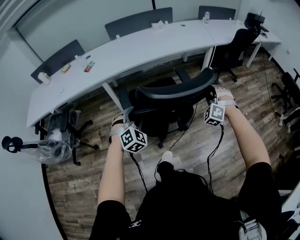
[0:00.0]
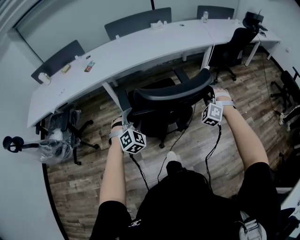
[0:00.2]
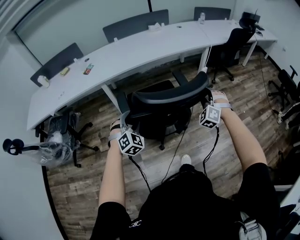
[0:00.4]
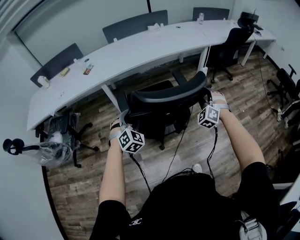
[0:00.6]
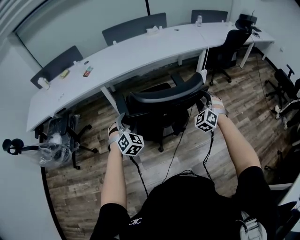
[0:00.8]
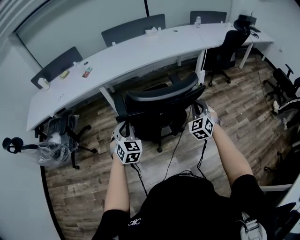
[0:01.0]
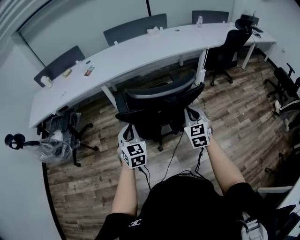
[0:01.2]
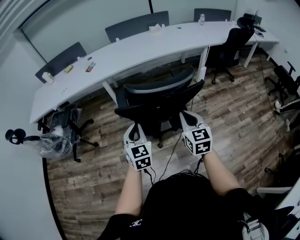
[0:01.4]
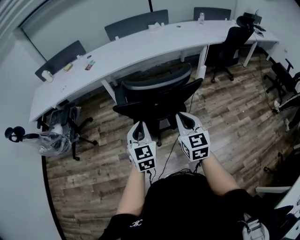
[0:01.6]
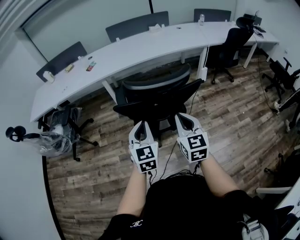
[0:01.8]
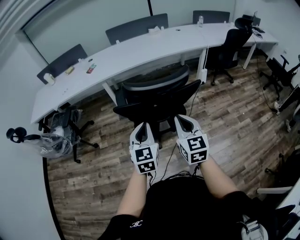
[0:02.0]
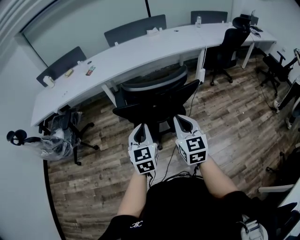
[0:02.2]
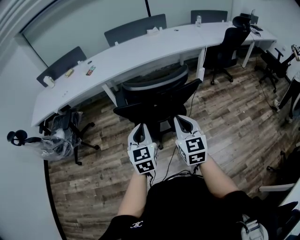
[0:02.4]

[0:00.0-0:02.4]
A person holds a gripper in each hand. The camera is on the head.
0:00.0 to 0:01.2: The left gripper moves backward, about 10 cm, rotates around the line of its fingers by roughly 40 degrees, counterclockwise from behind, and closes up. Meanwhile the right gripper is displaced backward and to the left by about 15 cm, twists roughly 60 degrees clockwise, seen from behind, and closes.
0:01.2 to 0:02.4: The right gripper is displaced backward and to the left by about 10 cm; the left gripper goes some 10 cm backward and to the right.

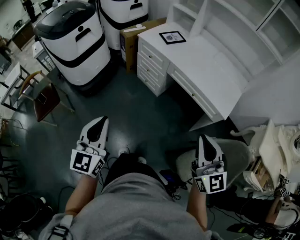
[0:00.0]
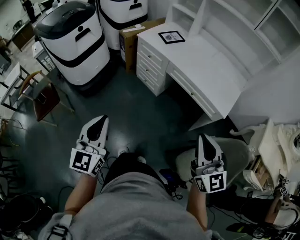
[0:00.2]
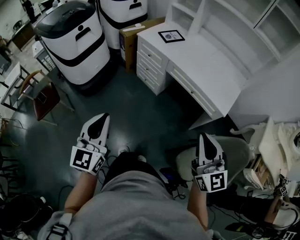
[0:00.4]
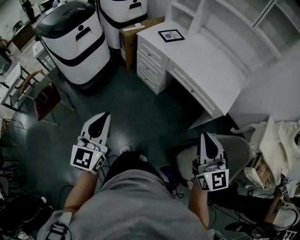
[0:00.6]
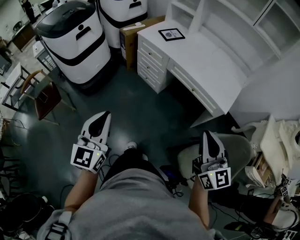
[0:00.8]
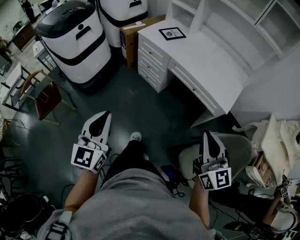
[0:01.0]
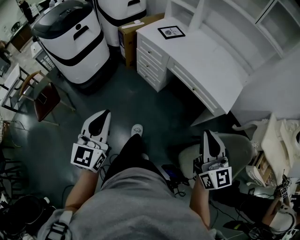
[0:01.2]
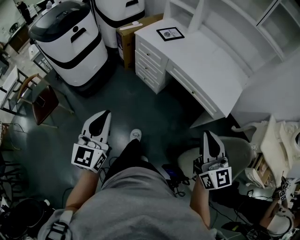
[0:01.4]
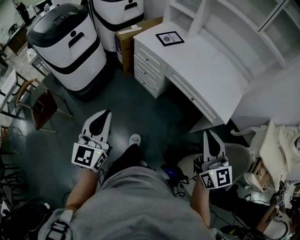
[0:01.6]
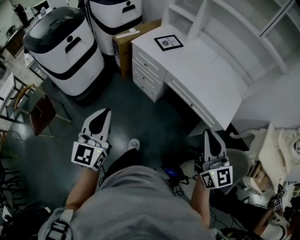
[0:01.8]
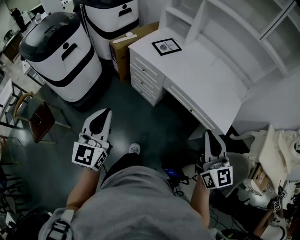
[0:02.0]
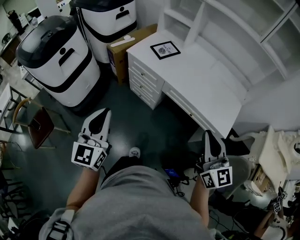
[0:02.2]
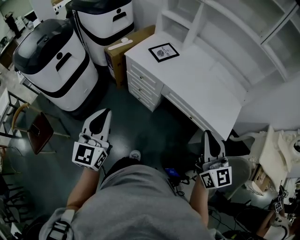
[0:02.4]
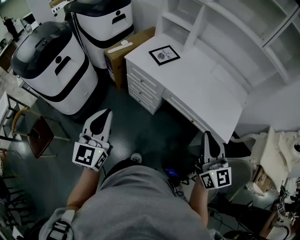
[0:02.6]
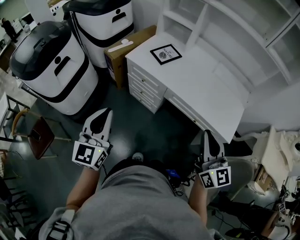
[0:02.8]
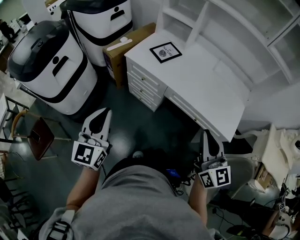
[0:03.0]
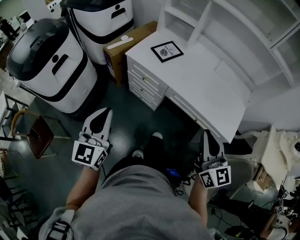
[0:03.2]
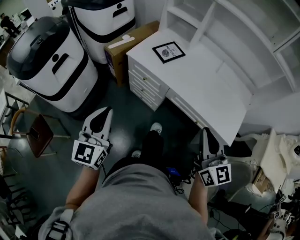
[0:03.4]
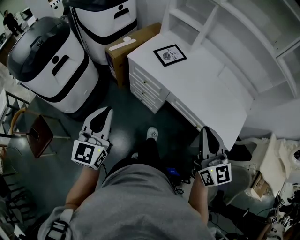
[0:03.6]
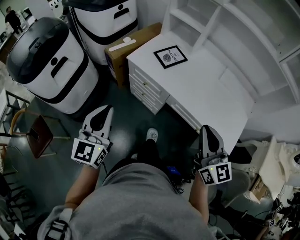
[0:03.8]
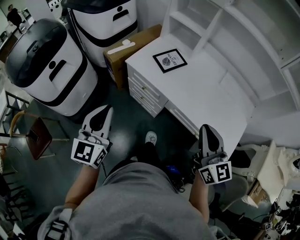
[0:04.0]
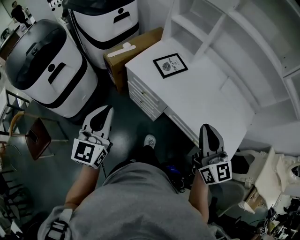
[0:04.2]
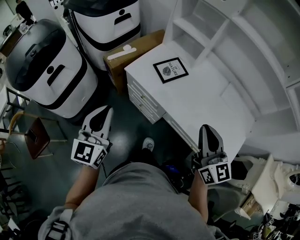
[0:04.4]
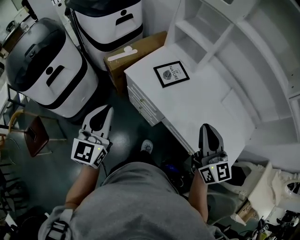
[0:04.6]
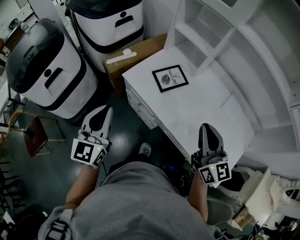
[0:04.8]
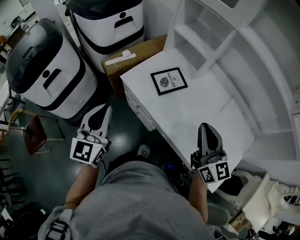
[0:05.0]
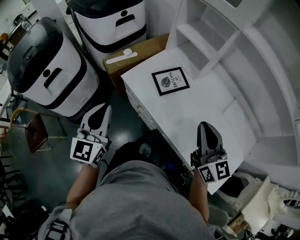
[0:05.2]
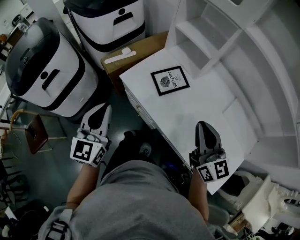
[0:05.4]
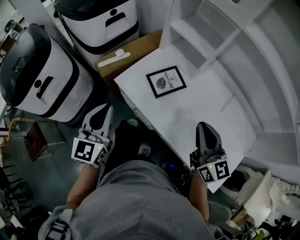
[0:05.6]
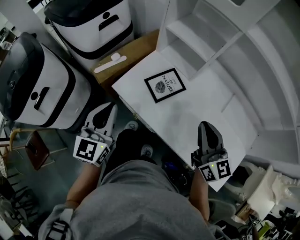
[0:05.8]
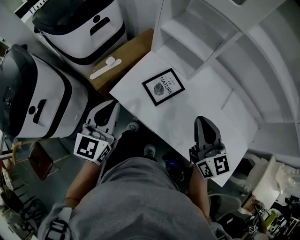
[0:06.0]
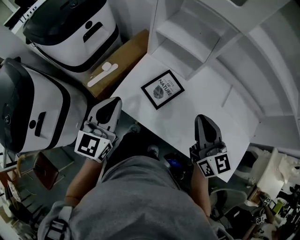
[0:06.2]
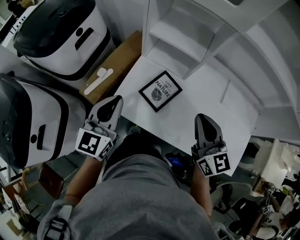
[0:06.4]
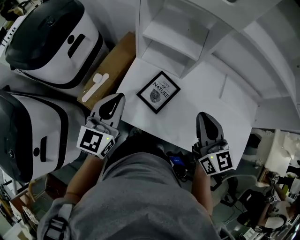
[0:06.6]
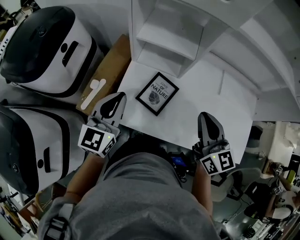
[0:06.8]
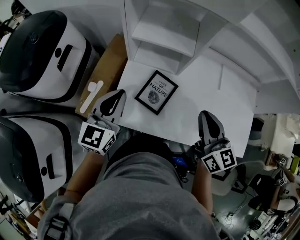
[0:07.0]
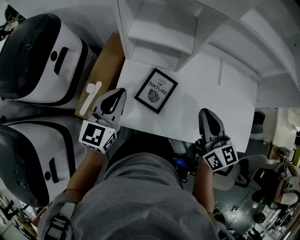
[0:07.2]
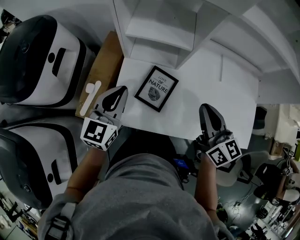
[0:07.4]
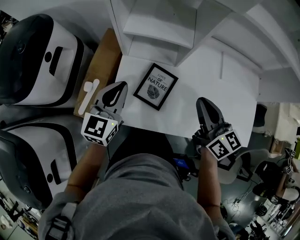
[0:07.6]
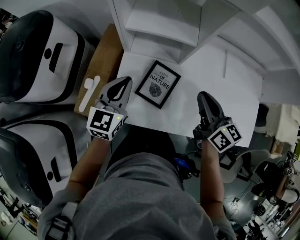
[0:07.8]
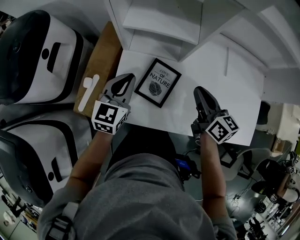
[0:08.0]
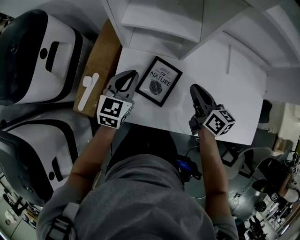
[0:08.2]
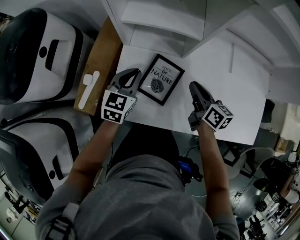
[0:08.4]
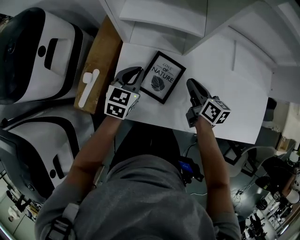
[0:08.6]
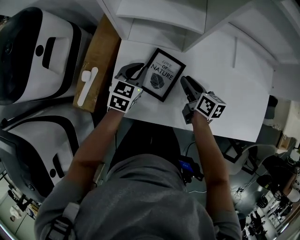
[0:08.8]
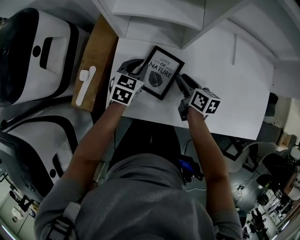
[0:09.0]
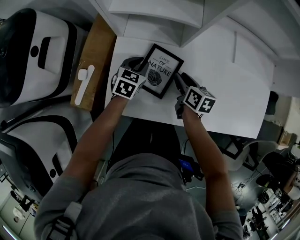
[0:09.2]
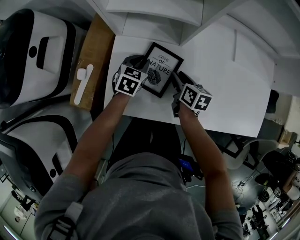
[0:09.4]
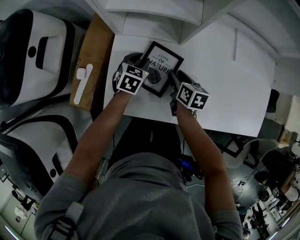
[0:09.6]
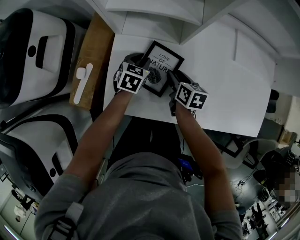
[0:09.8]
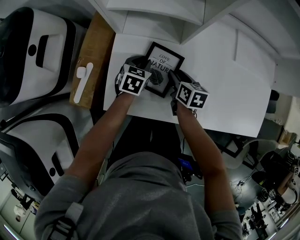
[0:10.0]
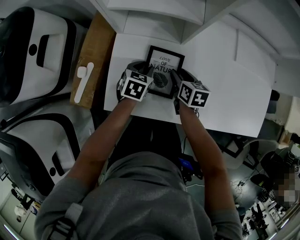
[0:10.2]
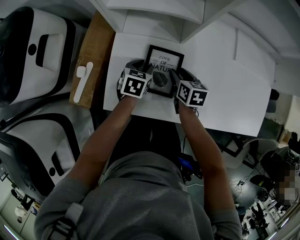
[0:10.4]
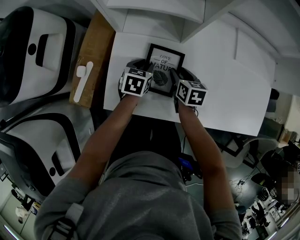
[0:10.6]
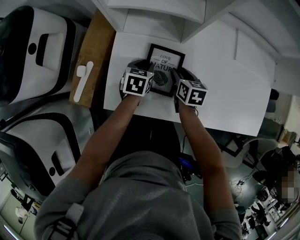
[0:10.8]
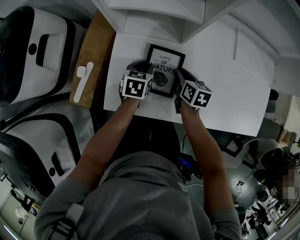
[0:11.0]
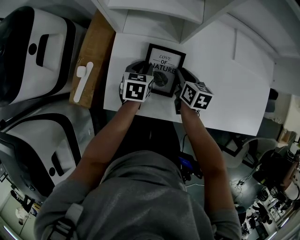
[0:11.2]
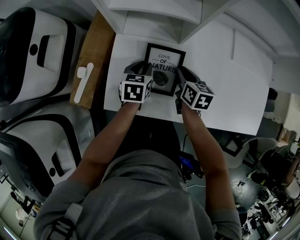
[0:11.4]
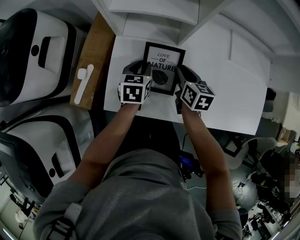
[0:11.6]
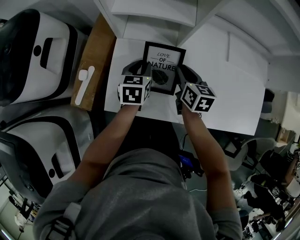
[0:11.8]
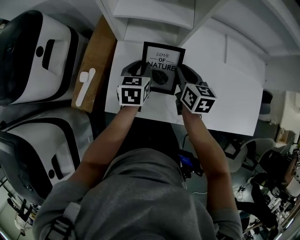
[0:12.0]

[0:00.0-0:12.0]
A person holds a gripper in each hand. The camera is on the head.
0:00.0 to 0:01.6: The two grippers go roughly 5 cm forward.
0:01.6 to 0:03.0: Both grippers travel together forward, approximately 20 cm.
0:03.0 to 0:04.4: Both grippers move forward, about 15 cm.
0:04.4 to 0:06.0: The two grippers go approximately 20 cm forward.
0:06.0 to 0:07.6: The right gripper shifts by some 5 cm, and rotates some 30 degrees. Meanwhile the left gripper changes place by approximately 20 cm, and rotates roughly 30 degrees.
0:07.6 to 0:09.0: Both grippers move downward, approximately 20 cm. The left gripper changes its angle by about 20 degrees, while the right gripper turns by approximately 30 degrees, and opens its fingers.
0:09.0 to 0:10.4: The left gripper heads downward, covering approximately 5 cm, and opens its fingers.
0:10.4 to 0:12.0: The grippers both shift upward by about 10 cm.

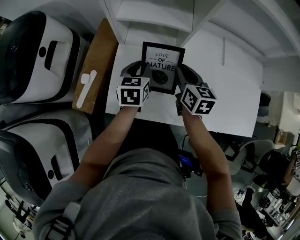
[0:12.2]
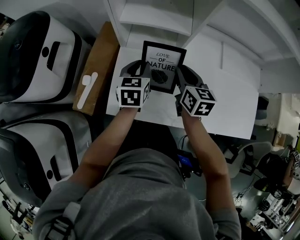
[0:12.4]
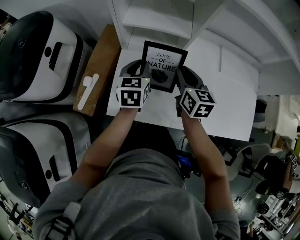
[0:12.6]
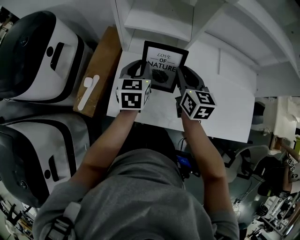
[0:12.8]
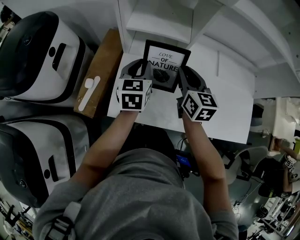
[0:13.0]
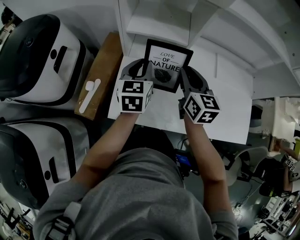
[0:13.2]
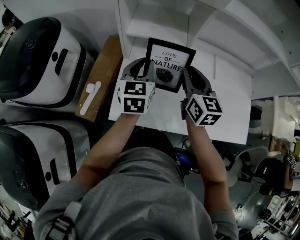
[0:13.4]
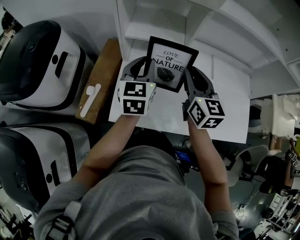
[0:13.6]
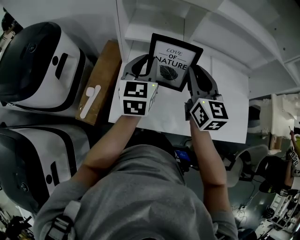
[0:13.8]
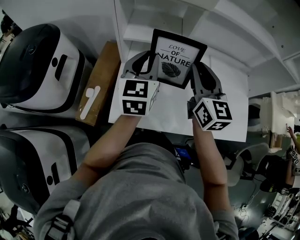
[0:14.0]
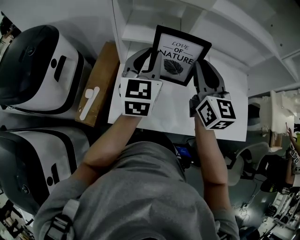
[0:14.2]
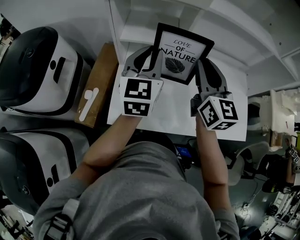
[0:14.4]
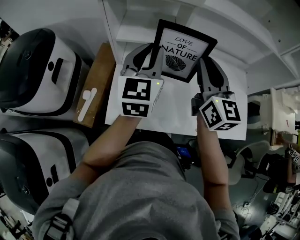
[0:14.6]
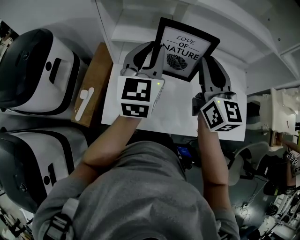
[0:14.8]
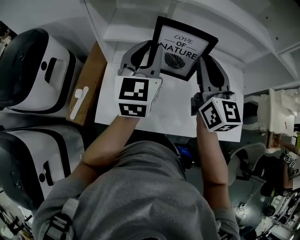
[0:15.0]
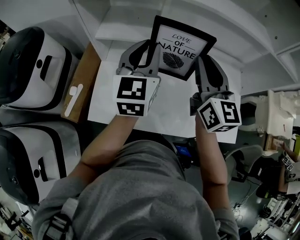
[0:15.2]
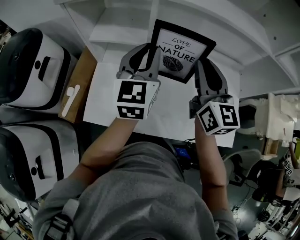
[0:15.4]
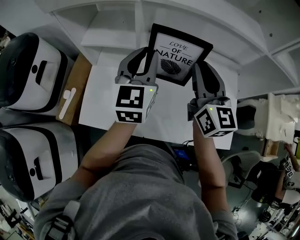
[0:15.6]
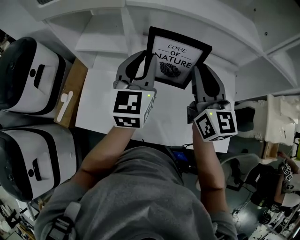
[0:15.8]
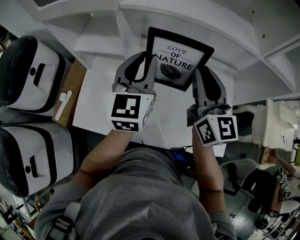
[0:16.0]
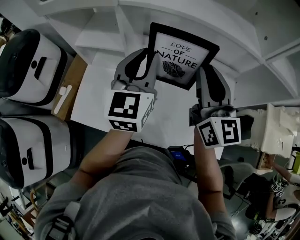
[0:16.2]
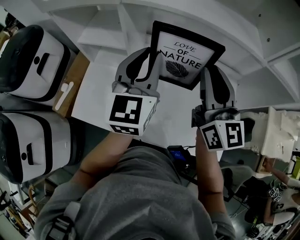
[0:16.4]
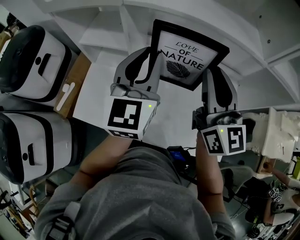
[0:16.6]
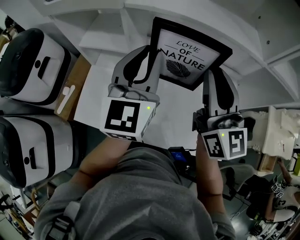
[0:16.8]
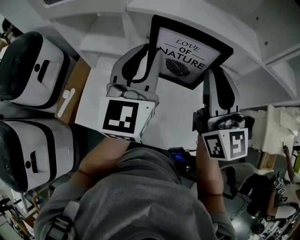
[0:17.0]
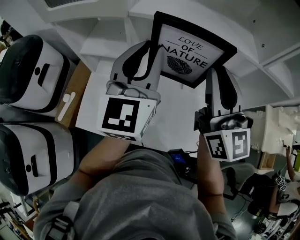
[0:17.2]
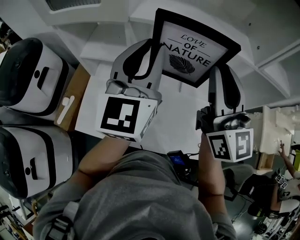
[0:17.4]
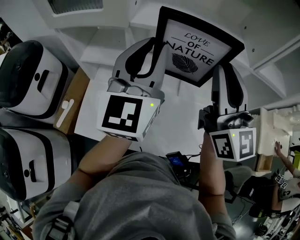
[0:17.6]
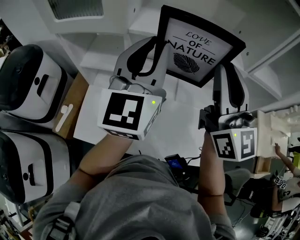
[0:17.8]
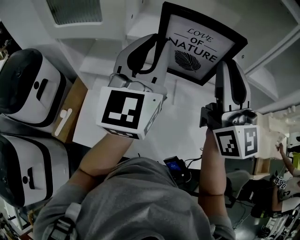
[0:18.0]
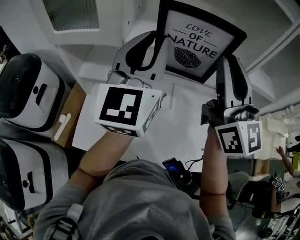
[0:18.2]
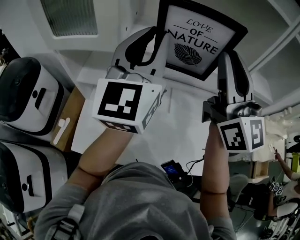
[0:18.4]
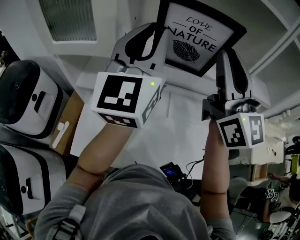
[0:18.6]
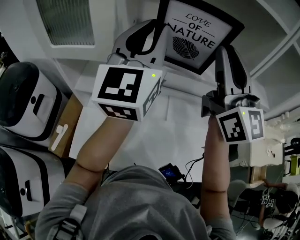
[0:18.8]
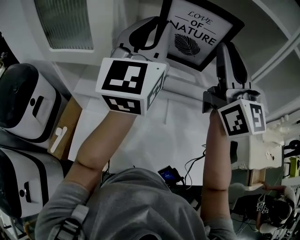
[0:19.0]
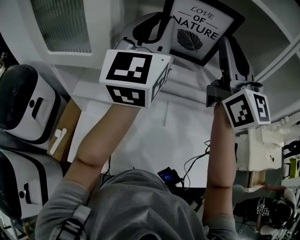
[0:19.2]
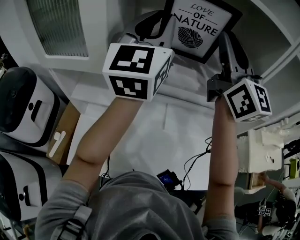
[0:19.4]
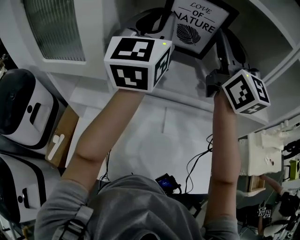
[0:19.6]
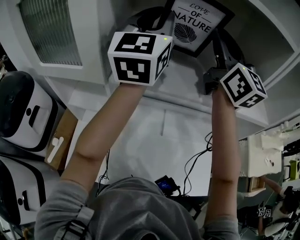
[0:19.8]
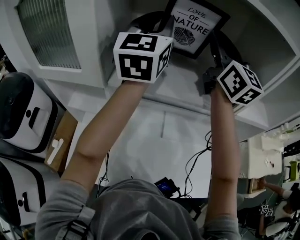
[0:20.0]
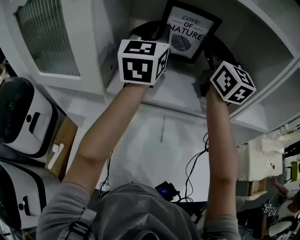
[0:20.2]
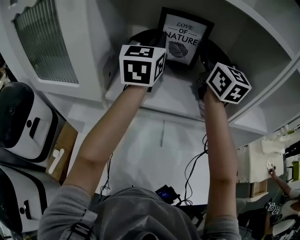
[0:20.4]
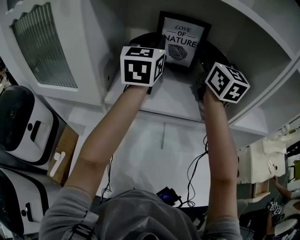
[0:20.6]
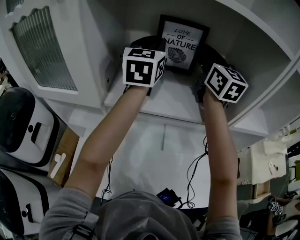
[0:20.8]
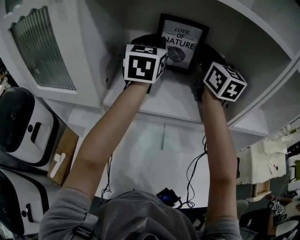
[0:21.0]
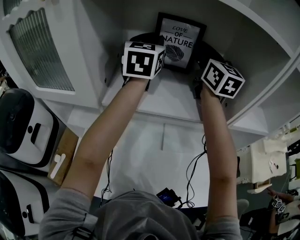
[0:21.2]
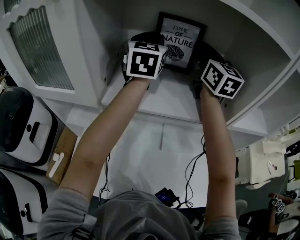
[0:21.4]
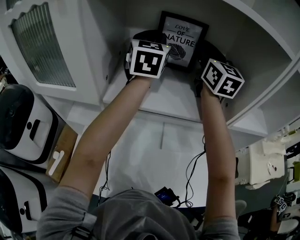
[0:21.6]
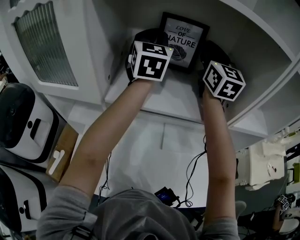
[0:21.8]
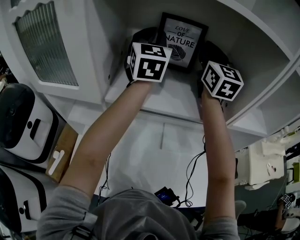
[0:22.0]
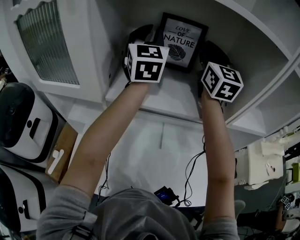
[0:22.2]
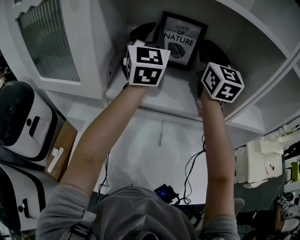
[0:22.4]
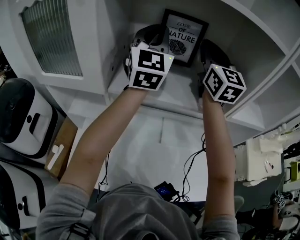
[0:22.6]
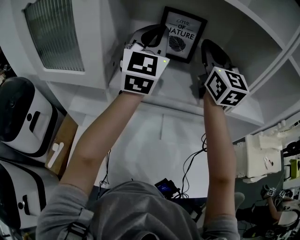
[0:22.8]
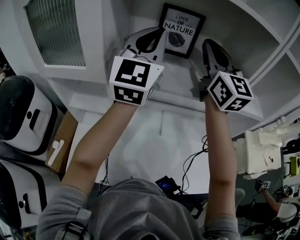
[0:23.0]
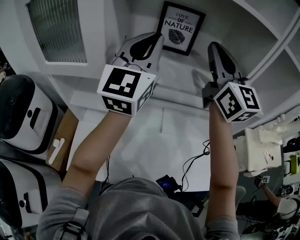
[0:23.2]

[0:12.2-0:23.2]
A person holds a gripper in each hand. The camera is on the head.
0:12.2 to 0:13.8: Both grippers move upward, some 20 cm. The right gripper turns by roughly 30 degrees. Meanwhile the left gripper changes its angle by roughly 30 degrees.
0:13.8 to 0:15.4: The left gripper travels to the right and upward by roughly 15 cm; the right gripper travels to the right by approximately 15 cm.
0:15.4 to 0:17.0: The two grippers go roughly 10 cm upward and to the right.
0:17.0 to 0:18.4: The grippers both shift upward by some 10 cm.
0:18.4 to 0:20.0: The right gripper moves forward, roughly 25 cm; the left gripper heads forward and upward, covering some 20 cm.
0:20.0 to 0:21.6: The two grippers go about 10 cm forward.
0:21.6 to 0:23.2: Both grippers travel together backward, roughly 20 cm. The left gripper swivels some 20 degrees.
